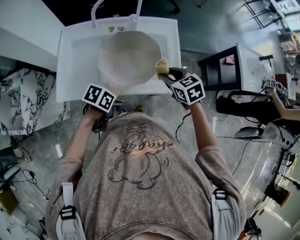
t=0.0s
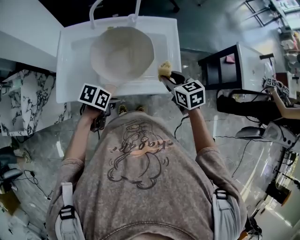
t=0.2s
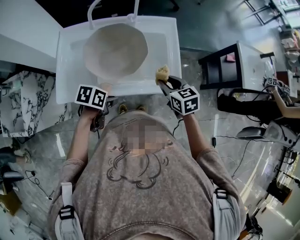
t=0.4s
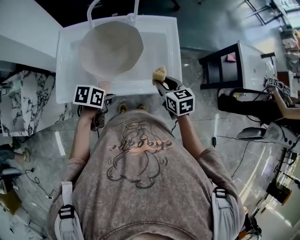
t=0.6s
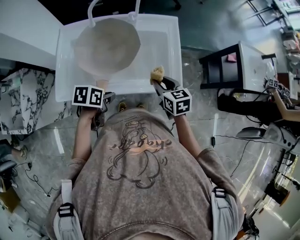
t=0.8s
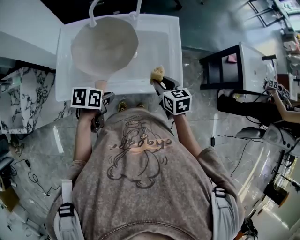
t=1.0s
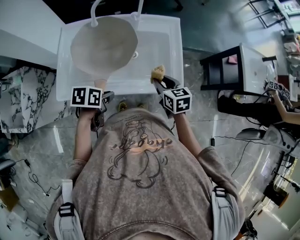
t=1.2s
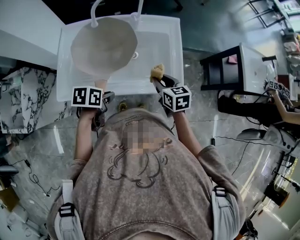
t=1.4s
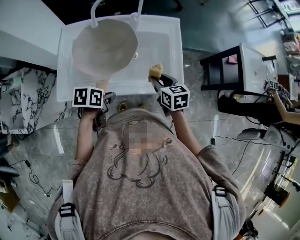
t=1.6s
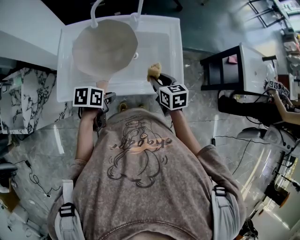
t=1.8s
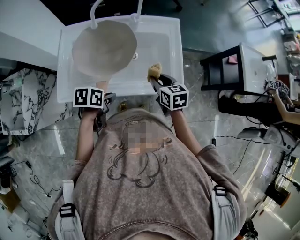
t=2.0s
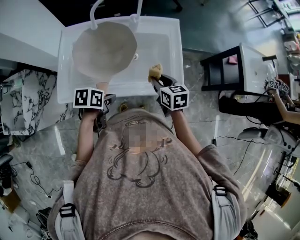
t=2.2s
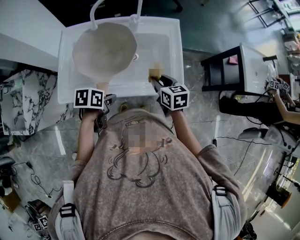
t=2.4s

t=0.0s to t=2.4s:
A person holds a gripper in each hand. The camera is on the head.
t=0.0s to t=1.2s: The right gripper changes place by approximately 5 cm.

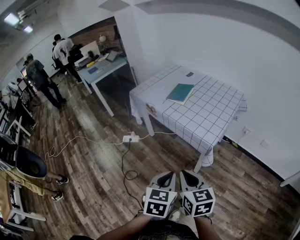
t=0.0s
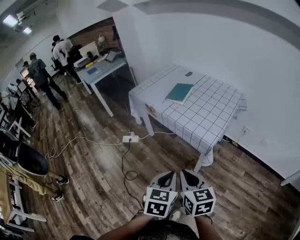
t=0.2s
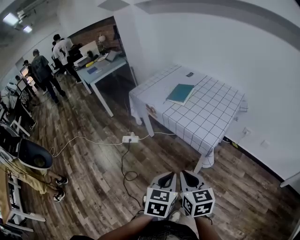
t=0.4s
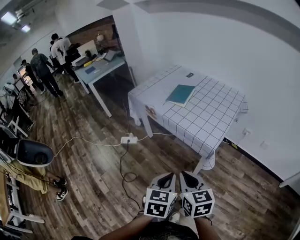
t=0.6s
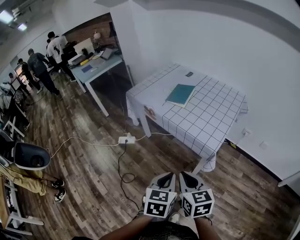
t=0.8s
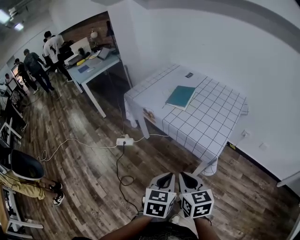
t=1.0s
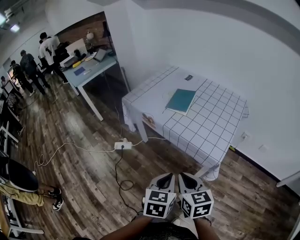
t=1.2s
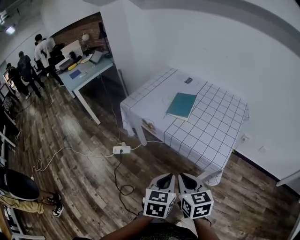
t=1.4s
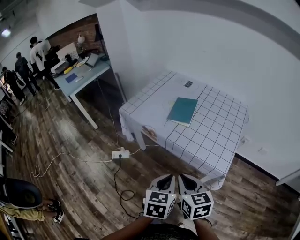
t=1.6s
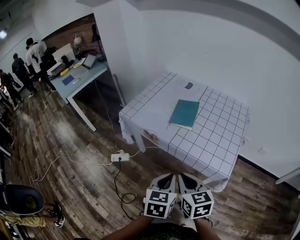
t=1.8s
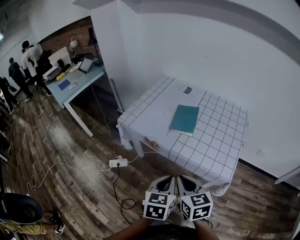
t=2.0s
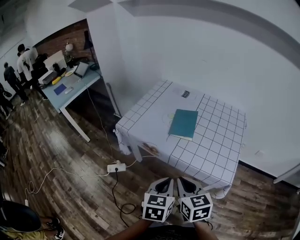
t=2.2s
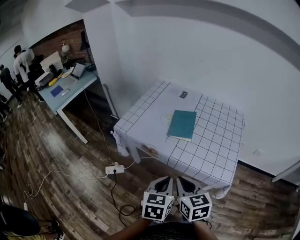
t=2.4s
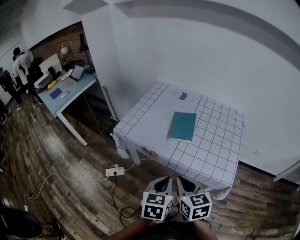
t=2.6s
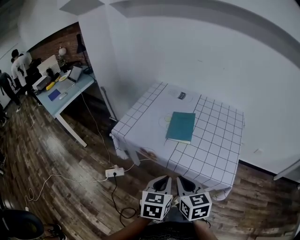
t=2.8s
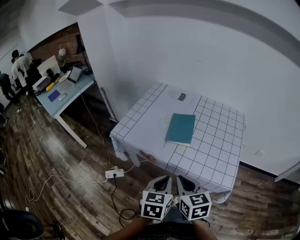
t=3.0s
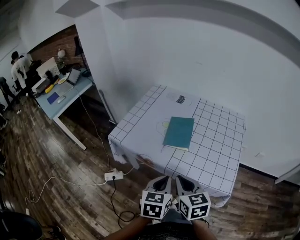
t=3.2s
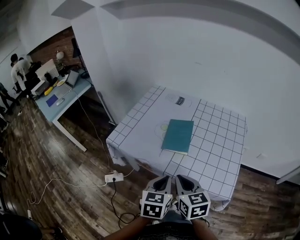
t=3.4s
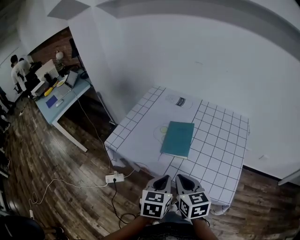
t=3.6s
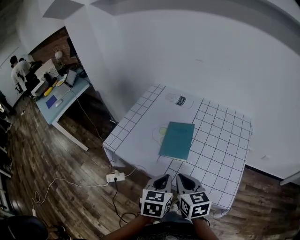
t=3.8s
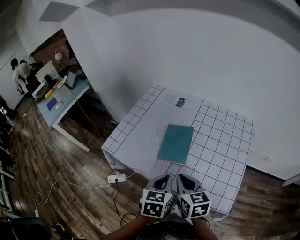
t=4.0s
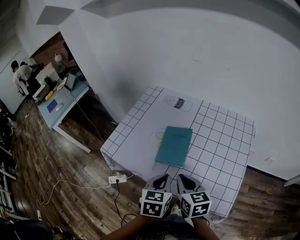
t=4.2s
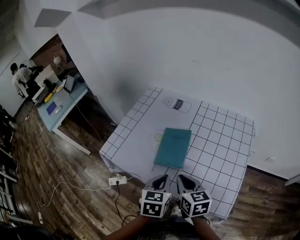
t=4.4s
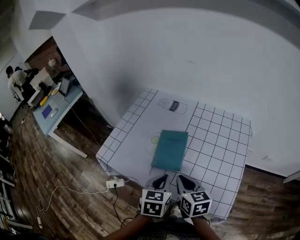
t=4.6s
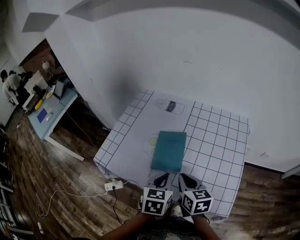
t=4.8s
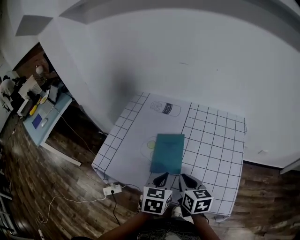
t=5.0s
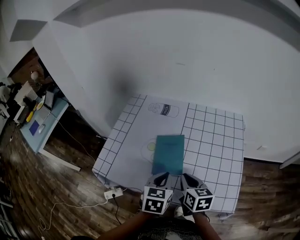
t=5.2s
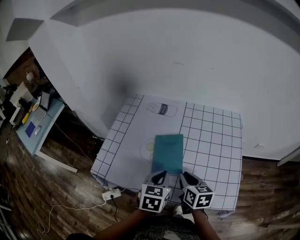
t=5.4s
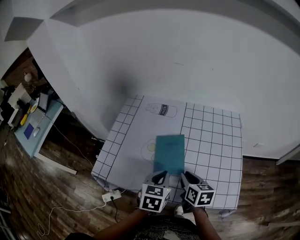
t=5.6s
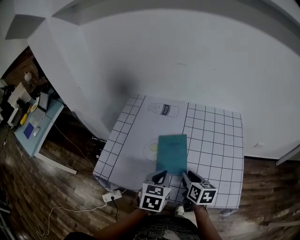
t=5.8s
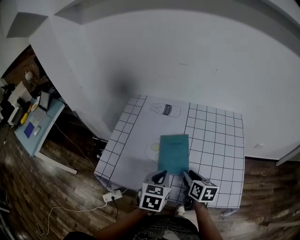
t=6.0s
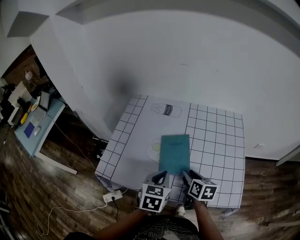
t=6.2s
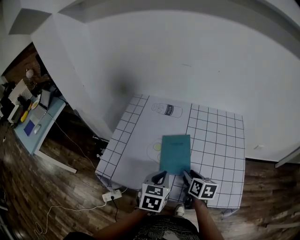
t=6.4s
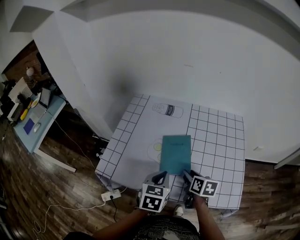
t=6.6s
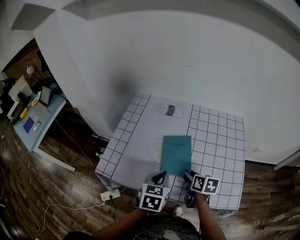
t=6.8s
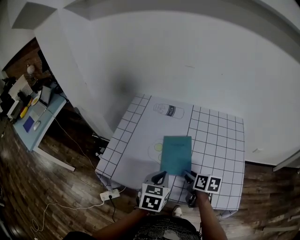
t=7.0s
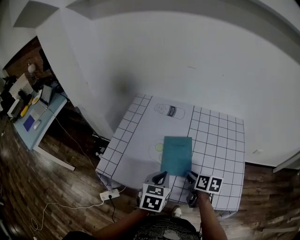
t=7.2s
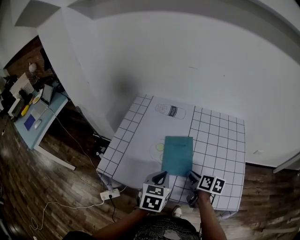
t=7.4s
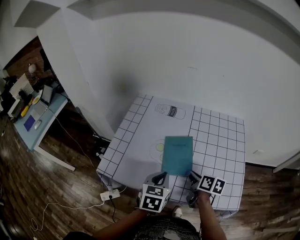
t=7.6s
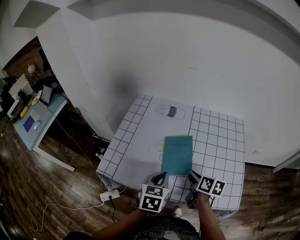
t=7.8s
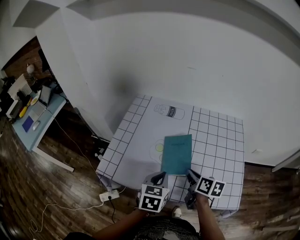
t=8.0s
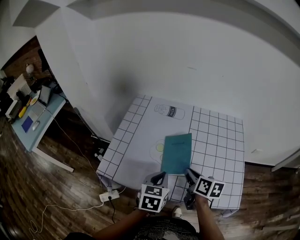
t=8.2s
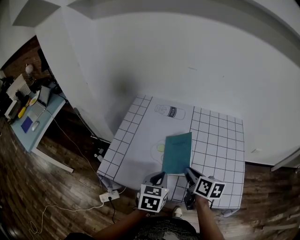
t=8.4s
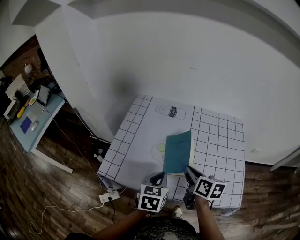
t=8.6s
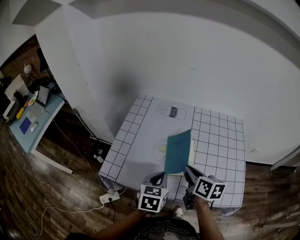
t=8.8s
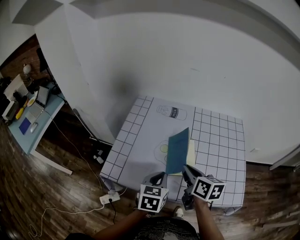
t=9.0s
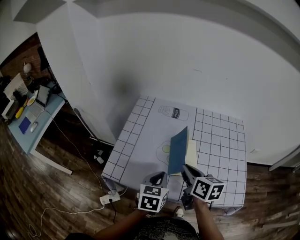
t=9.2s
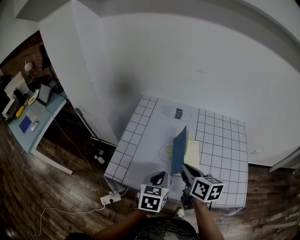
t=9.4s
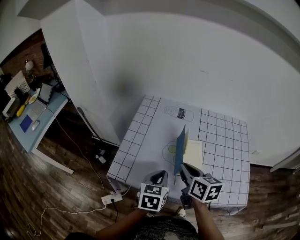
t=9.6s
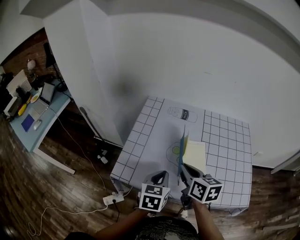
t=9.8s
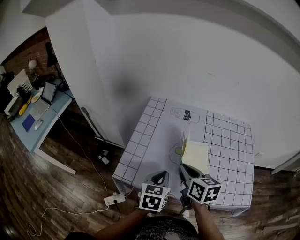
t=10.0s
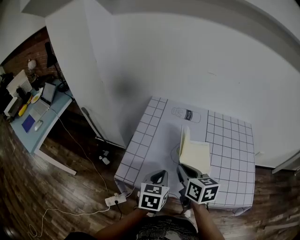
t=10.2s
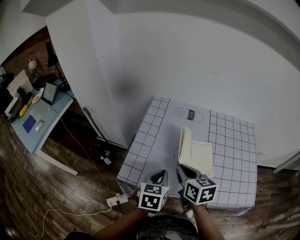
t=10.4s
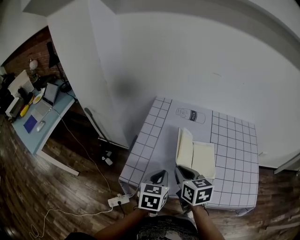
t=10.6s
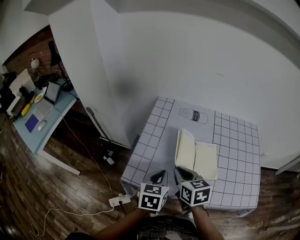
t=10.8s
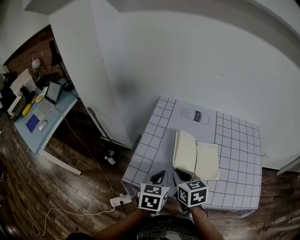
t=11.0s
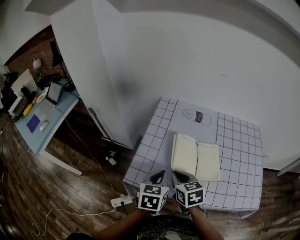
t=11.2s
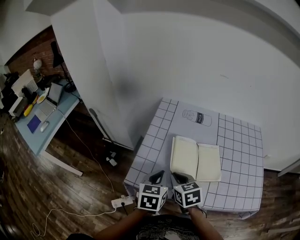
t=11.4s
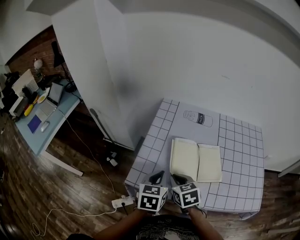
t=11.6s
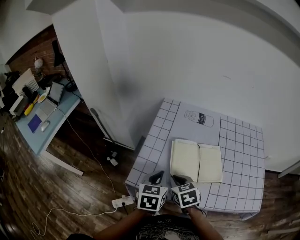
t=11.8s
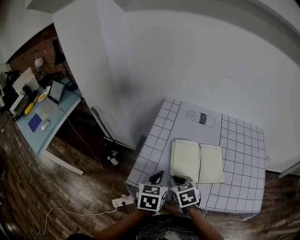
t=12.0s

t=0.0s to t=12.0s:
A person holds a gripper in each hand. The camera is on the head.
t=0.0s to t=1.6s: The grippers both shift forward and to the left by about 20 cm.
t=1.6s to t=3.0s: The left gripper goes about 15 cm forward and to the left; the right gripper shifts approximately 10 cm forward.
t=3.0s to t=4.4s: Both grippers move forward and to the right, about 15 cm.
t=4.4s to t=6.0s: The left gripper shifts about 5 cm forward. Meanwhile the right gripper travels downward and forward by about 10 cm, rotates approximately 30 degrees, and opens up.
t=6.0s to t=7.6s: The right gripper closes up.
t=7.6s to t=9.0s: The right gripper is displaced upward and to the left by roughly 10 cm.
t=9.0s to t=10.4s: The grippers both shift to the left by roughly 10 cm.
t=10.4s to t=12.0s: The left gripper goes roughly 5 cm to the left; the right gripper heads downward and to the left, covering approximately 10 cm, and changes its angle by some 30 degrees.

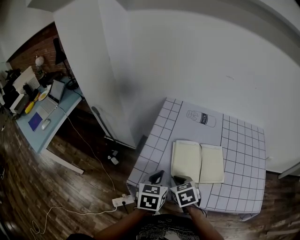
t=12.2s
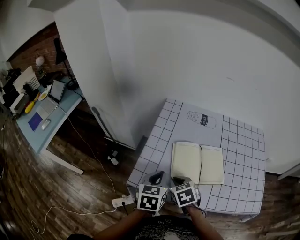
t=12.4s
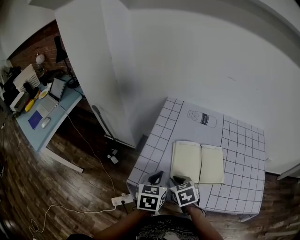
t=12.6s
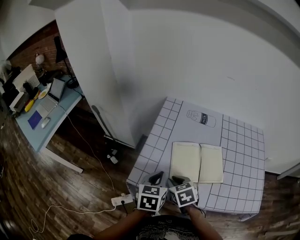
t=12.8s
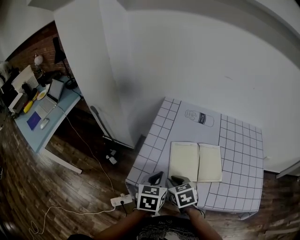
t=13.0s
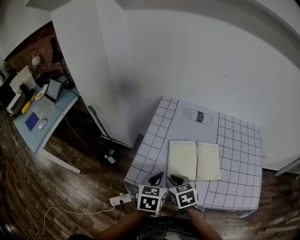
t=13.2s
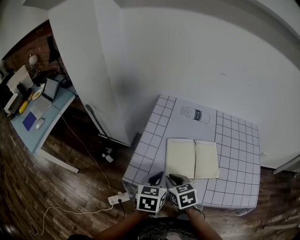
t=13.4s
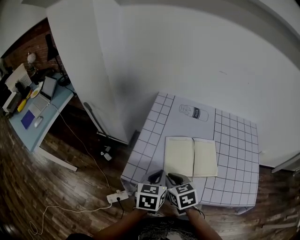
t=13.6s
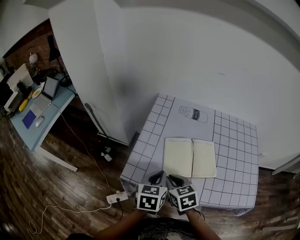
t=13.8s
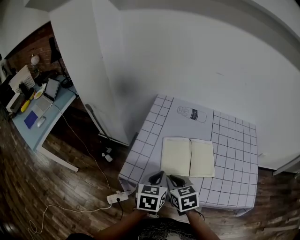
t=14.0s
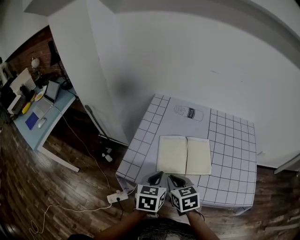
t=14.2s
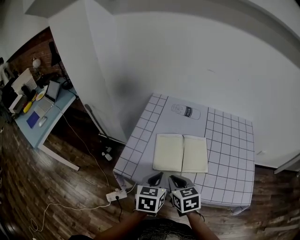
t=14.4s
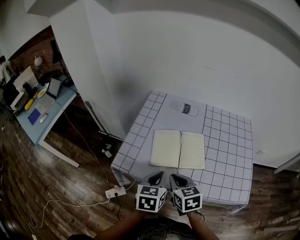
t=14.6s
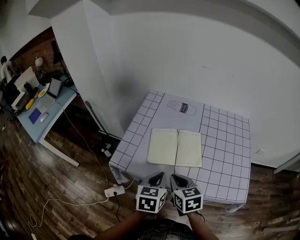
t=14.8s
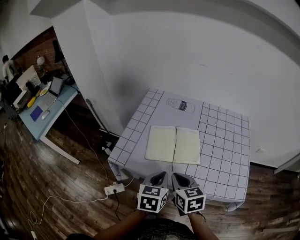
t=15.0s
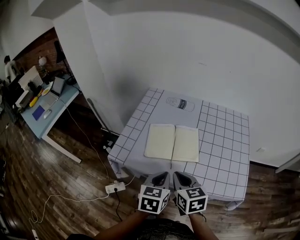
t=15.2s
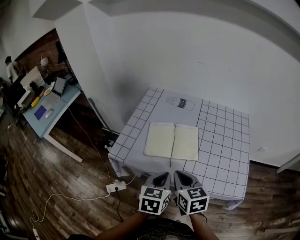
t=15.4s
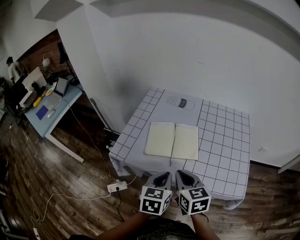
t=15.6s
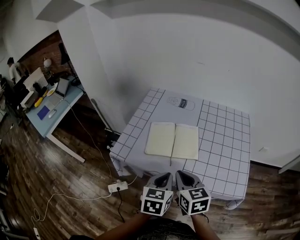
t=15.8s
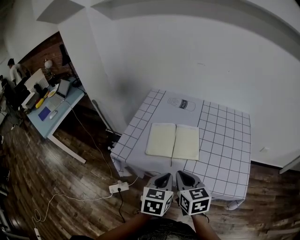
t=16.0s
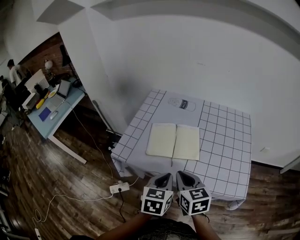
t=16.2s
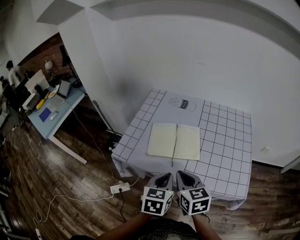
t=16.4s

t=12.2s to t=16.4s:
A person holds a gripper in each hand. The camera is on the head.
t=12.2s to t=13.6s: There are only small adjustments of the grippers.
t=13.6s to t=15.0s: The right gripper travels to the right, backward and upward by some 15 cm. The left gripper shifts about 15 cm to the right and backward.
t=15.0s to t=16.4s: The left gripper ends up about 5 cm from where it was.

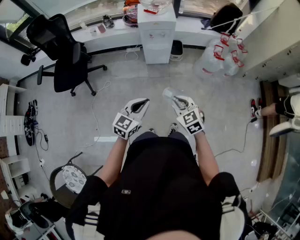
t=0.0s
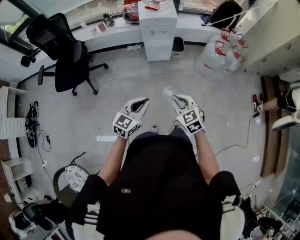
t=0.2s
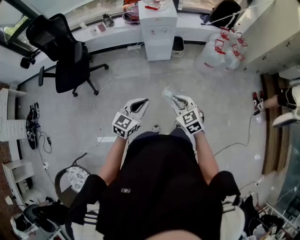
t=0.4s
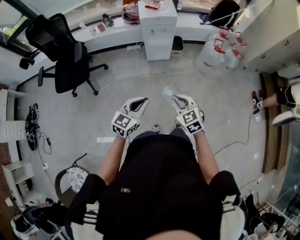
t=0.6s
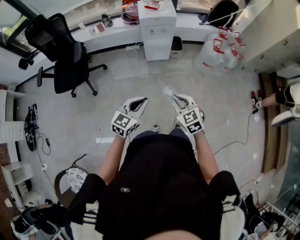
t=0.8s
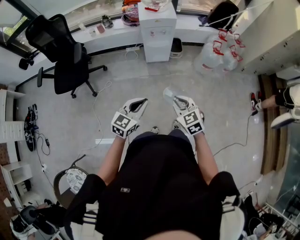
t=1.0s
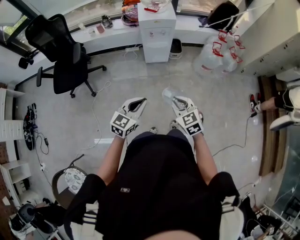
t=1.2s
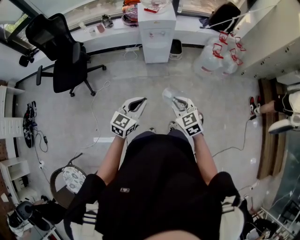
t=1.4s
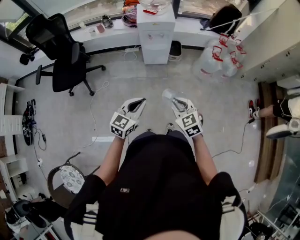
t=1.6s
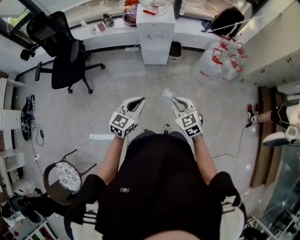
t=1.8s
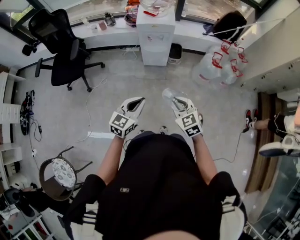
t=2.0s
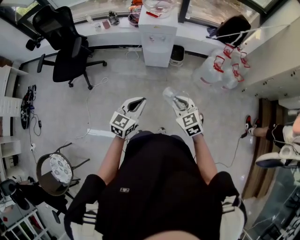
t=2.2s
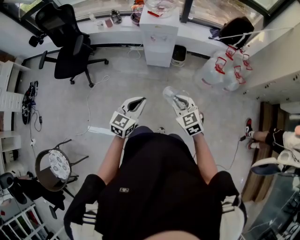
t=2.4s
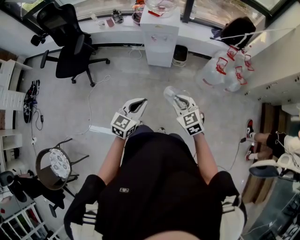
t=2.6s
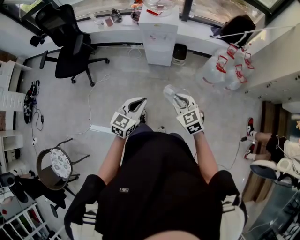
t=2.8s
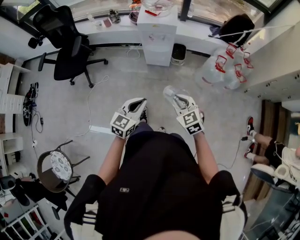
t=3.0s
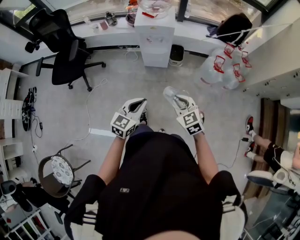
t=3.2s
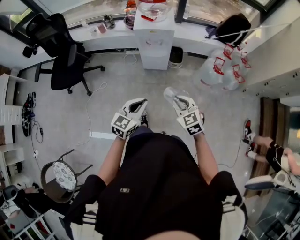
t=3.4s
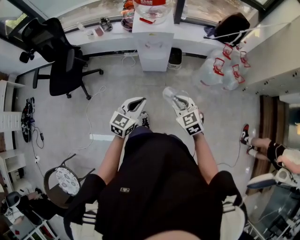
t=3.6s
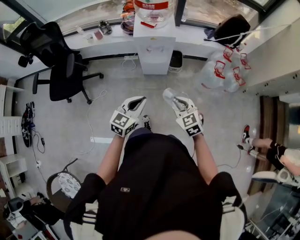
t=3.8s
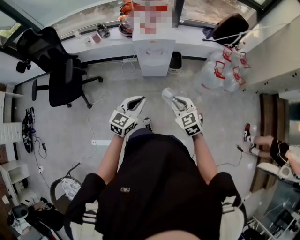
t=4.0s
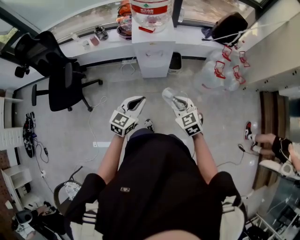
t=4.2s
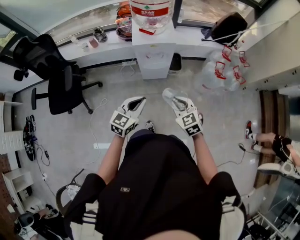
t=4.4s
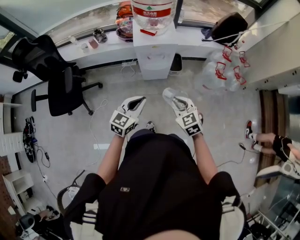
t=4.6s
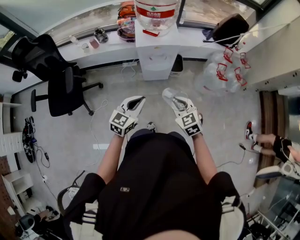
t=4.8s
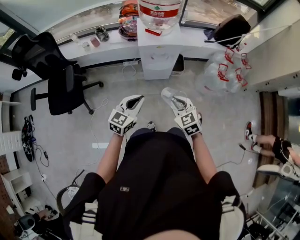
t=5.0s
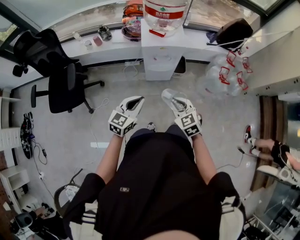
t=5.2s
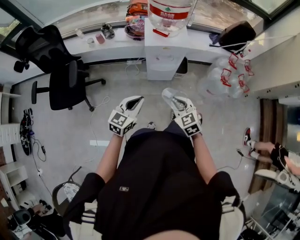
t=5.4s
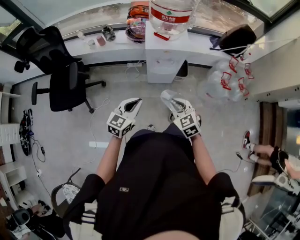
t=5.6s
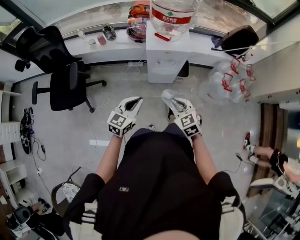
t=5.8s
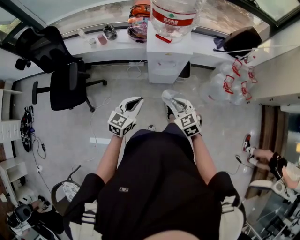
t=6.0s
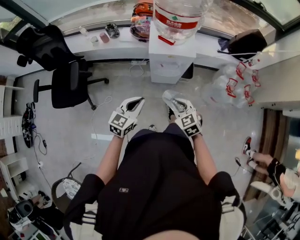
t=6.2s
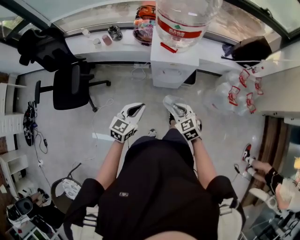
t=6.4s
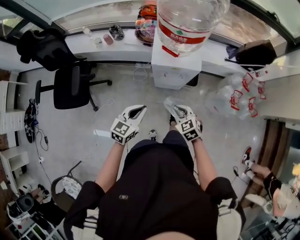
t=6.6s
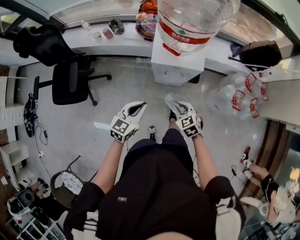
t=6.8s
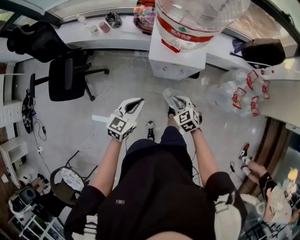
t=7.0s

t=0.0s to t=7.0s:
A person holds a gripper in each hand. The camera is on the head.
t=1.4s to t=2.8s: The left gripper heads to the right, covering about 15 cm. The right gripper heads to the right and forward, covering roughly 15 cm.
t=2.8s to t=4.2s: The grippers both shift forward and to the left by roughly 20 cm.
t=4.2s to t=5.6s: The two grippers go roughly 10 cm to the left.
t=5.6s to t=7.0s: The right gripper travels forward and downward by roughly 25 cm; the left gripper shifts roughly 15 cm forward.
